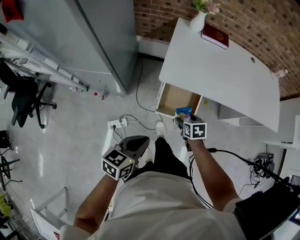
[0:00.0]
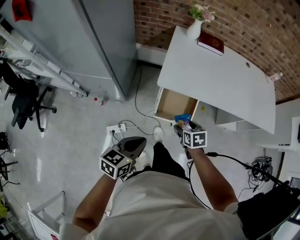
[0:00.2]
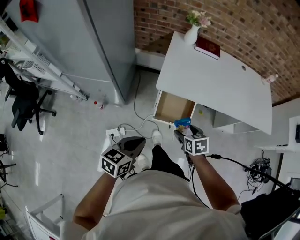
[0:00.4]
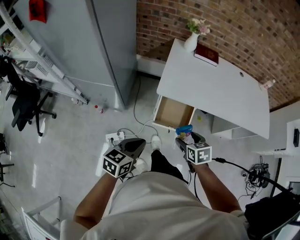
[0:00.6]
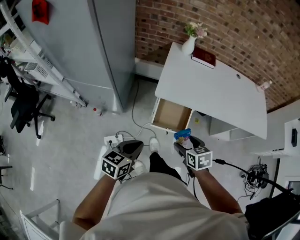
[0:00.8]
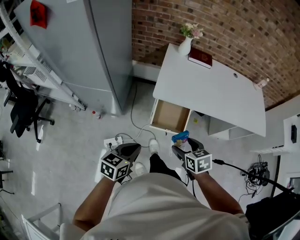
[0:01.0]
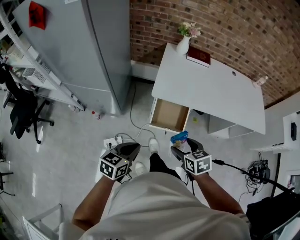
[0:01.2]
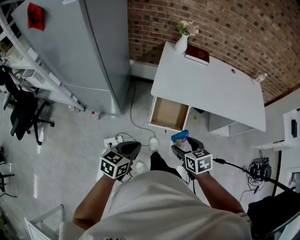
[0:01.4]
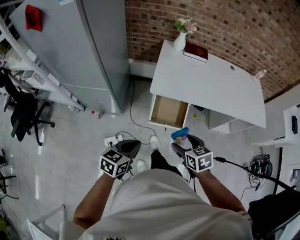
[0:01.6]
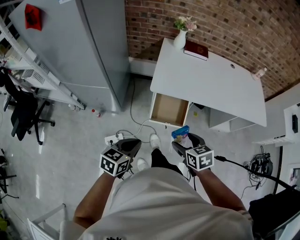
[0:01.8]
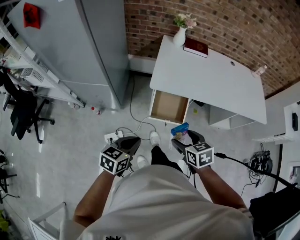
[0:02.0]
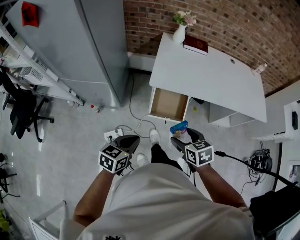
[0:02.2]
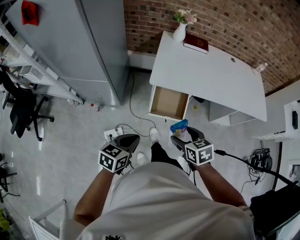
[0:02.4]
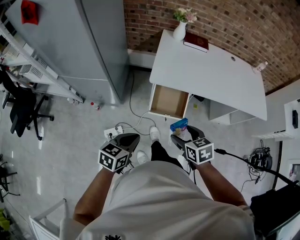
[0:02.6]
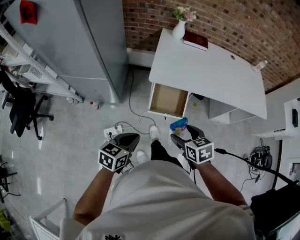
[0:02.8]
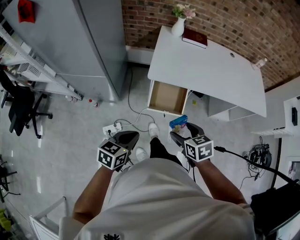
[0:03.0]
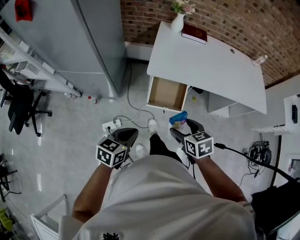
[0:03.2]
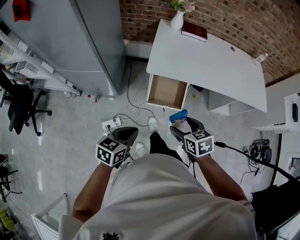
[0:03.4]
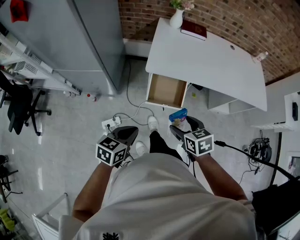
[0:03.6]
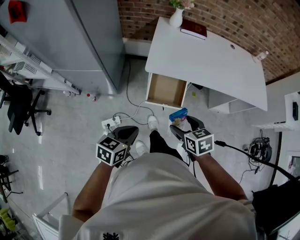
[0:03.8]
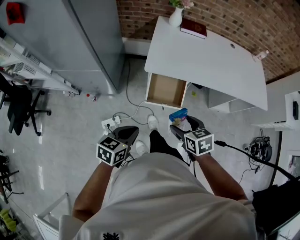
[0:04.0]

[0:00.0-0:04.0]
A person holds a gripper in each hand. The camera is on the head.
0:00.0 to 0:01.4: The right gripper heads upward and backward, covering roughly 25 cm. The left gripper moves backward, about 5 cm.
0:01.4 to 0:04.0: The grippers make only small movements.

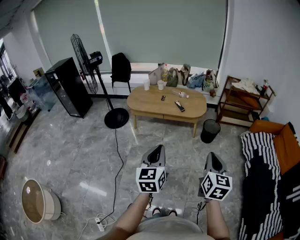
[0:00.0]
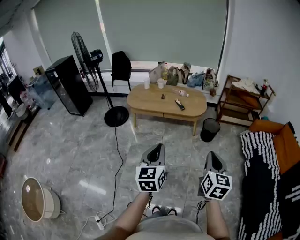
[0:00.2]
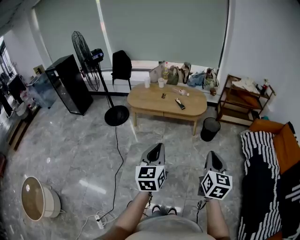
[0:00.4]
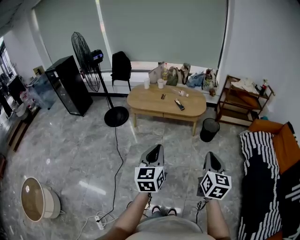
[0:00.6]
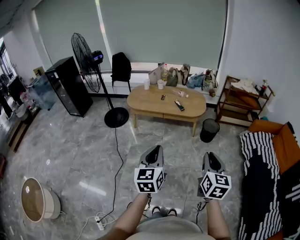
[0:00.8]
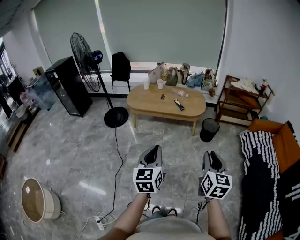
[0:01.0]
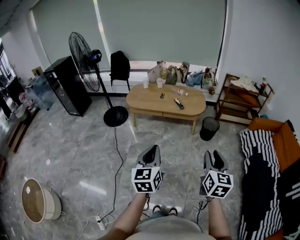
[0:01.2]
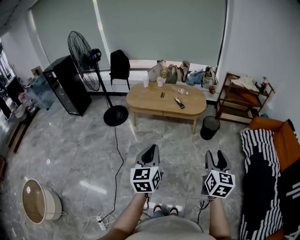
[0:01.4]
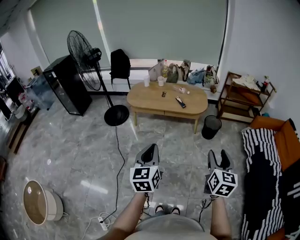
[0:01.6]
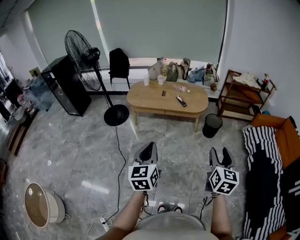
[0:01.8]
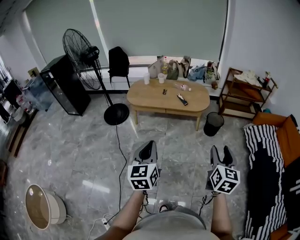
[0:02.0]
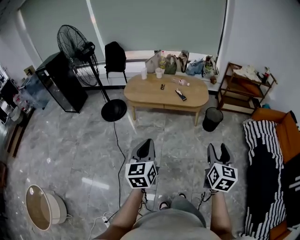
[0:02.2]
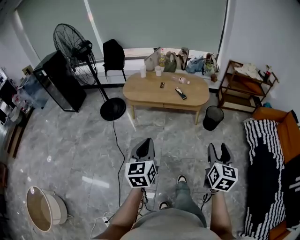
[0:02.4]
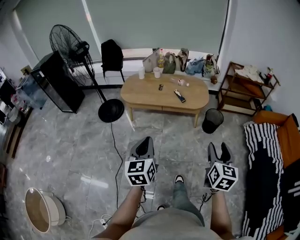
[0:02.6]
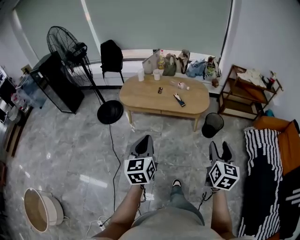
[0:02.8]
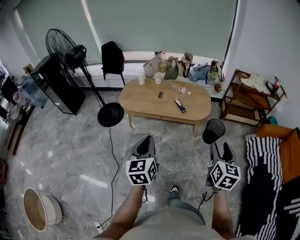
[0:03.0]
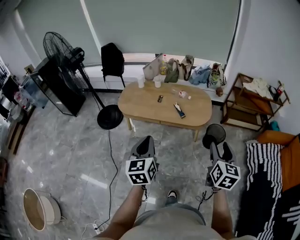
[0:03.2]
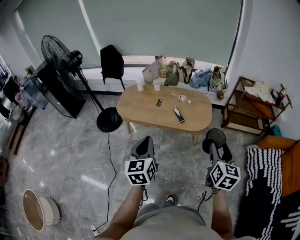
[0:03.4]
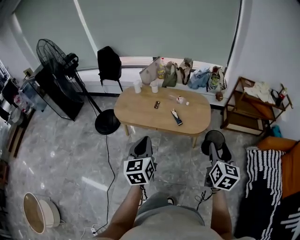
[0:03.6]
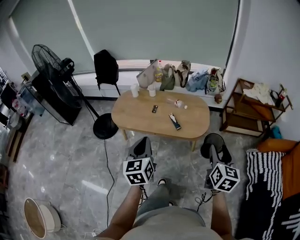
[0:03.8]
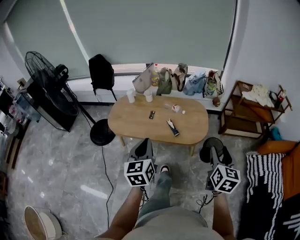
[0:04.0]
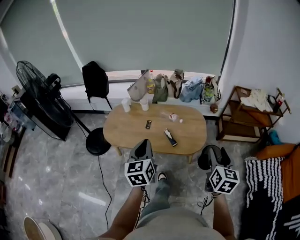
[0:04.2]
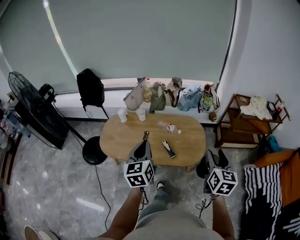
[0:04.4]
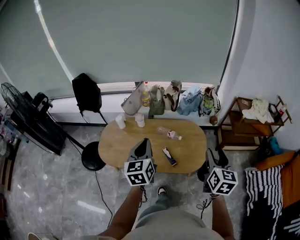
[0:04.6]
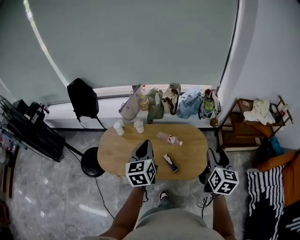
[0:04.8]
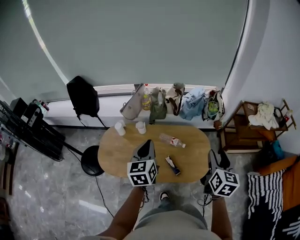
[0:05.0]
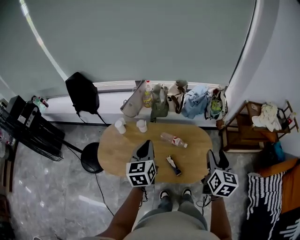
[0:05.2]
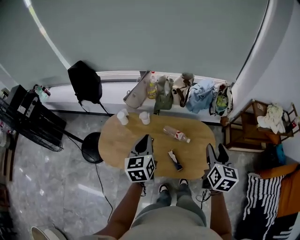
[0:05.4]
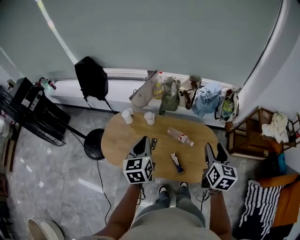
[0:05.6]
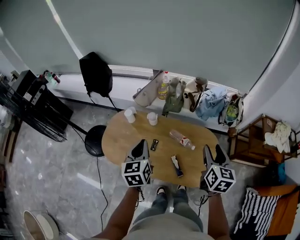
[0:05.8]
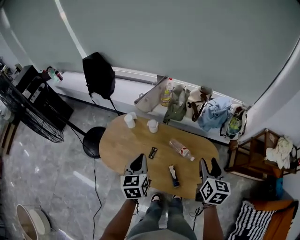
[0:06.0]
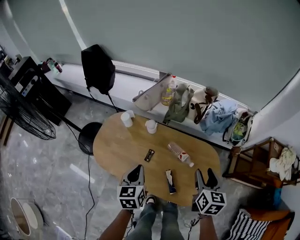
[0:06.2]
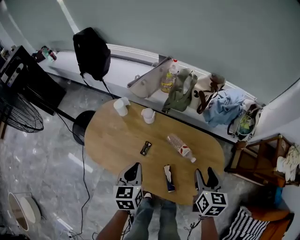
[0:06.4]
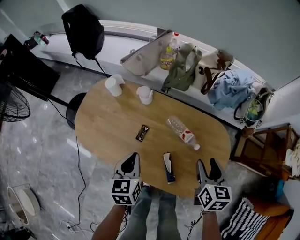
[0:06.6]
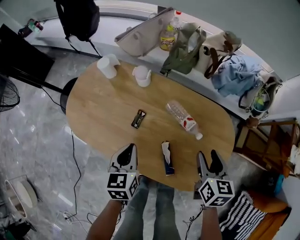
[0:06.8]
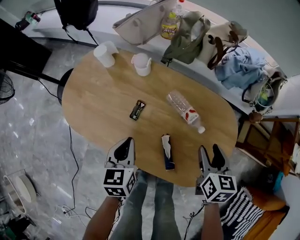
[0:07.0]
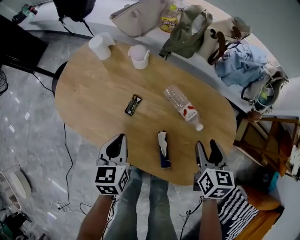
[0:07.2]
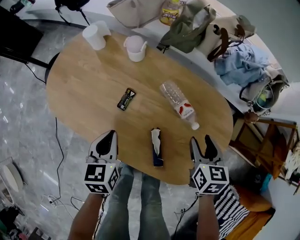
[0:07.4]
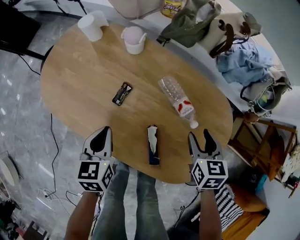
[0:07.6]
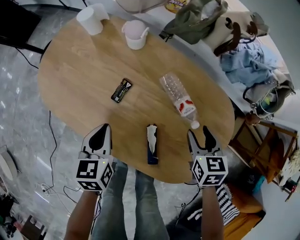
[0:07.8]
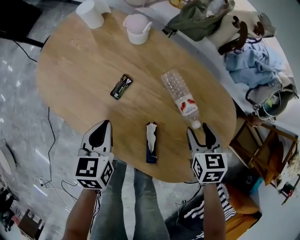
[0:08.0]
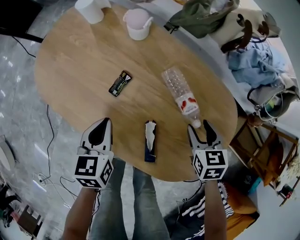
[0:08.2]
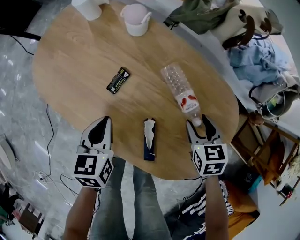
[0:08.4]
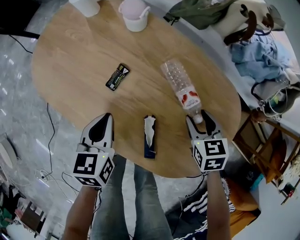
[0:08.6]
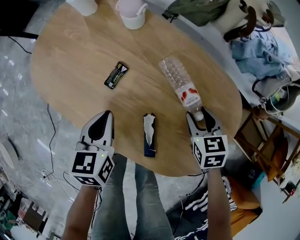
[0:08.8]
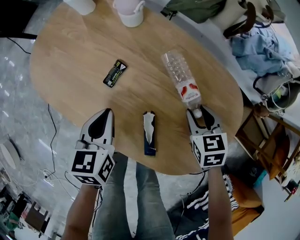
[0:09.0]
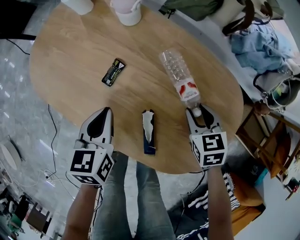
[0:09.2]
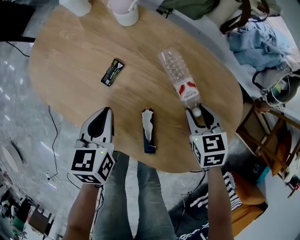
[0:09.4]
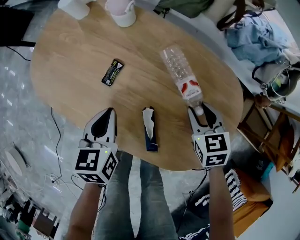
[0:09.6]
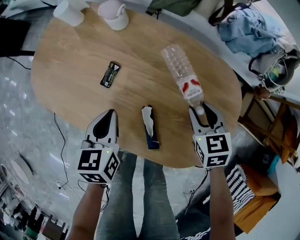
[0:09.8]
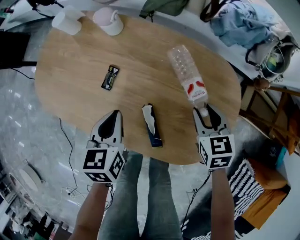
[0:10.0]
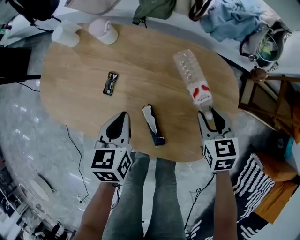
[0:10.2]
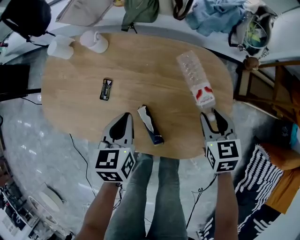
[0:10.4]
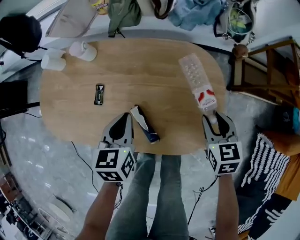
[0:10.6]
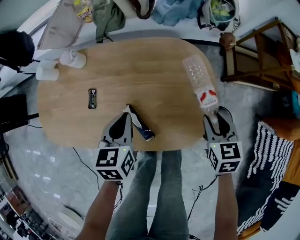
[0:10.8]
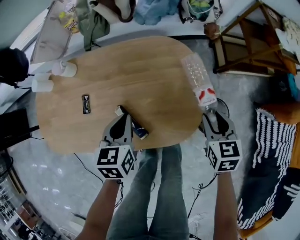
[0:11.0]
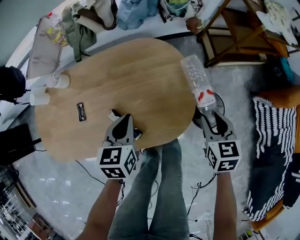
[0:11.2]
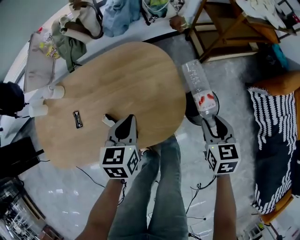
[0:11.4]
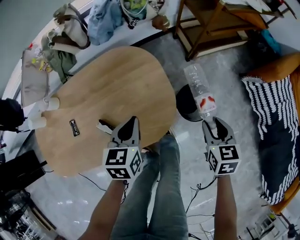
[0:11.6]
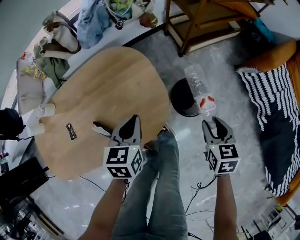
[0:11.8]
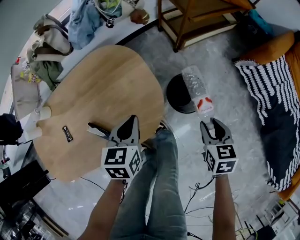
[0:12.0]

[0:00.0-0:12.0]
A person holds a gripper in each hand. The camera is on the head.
0:00.0 to 0:01.6: The left gripper goes roughly 5 cm to the left; the right gripper opens its fingers.
0:01.6 to 0:03.0: The two grippers go roughly 25 cm forward.
0:03.0 to 0:04.4: Both grippers move forward, about 40 cm.
0:04.4 to 0:06.0: The left gripper moves forward, downward and to the left, approximately 25 cm. The right gripper moves forward, approximately 30 cm.
0:06.0 to 0:07.6: Both grippers travel together downward, about 35 cm. The right gripper swivels approximately 30 degrees.
0:07.6 to 0:09.0: The right gripper travels downward by approximately 10 cm.
0:09.0 to 0:10.4: The right gripper is displaced backward, upward and to the right by some 15 cm, and swivels some 30 degrees. The left gripper is displaced to the right by roughly 10 cm, and rotates roughly 20 degrees.
0:10.4 to 0:12.0: The left gripper shifts by about 30 cm, and swivels roughly 40 degrees; the right gripper changes place by approximately 35 cm, and swivels about 50 degrees.

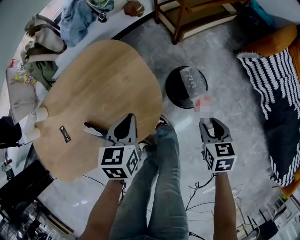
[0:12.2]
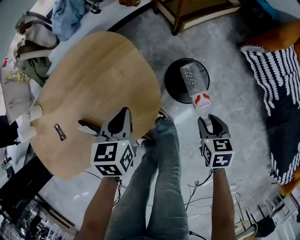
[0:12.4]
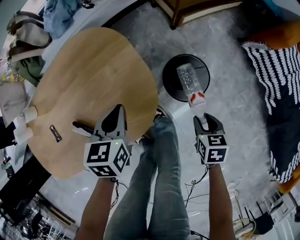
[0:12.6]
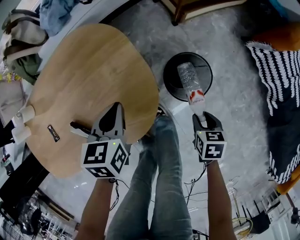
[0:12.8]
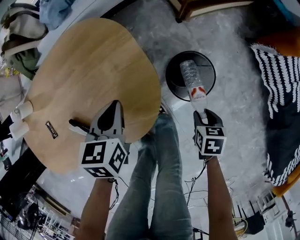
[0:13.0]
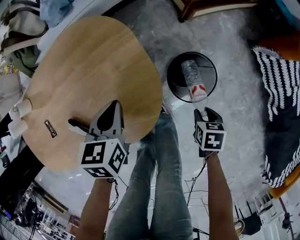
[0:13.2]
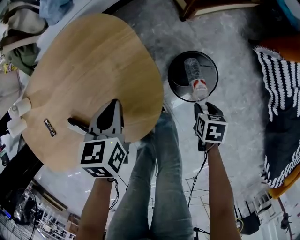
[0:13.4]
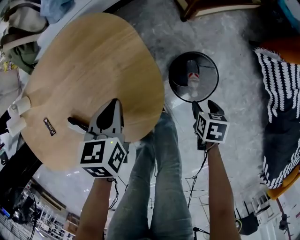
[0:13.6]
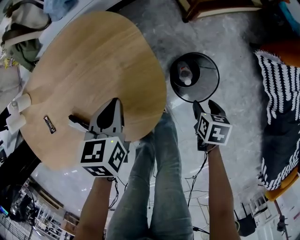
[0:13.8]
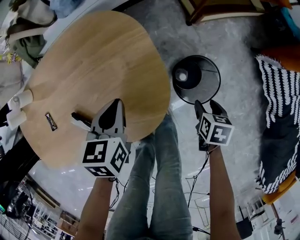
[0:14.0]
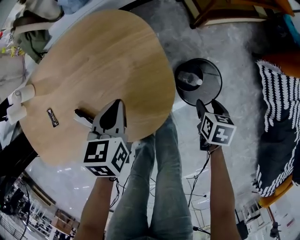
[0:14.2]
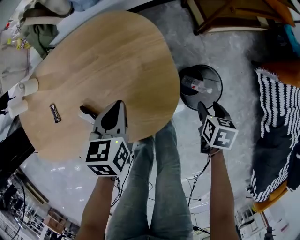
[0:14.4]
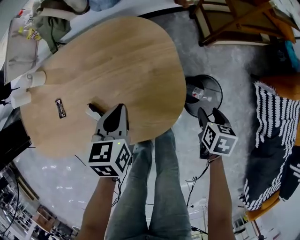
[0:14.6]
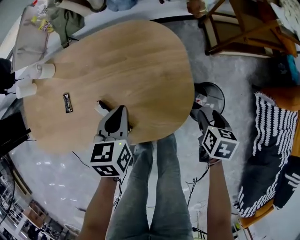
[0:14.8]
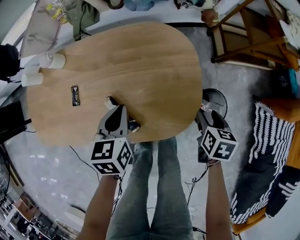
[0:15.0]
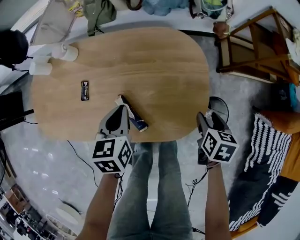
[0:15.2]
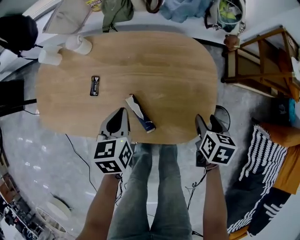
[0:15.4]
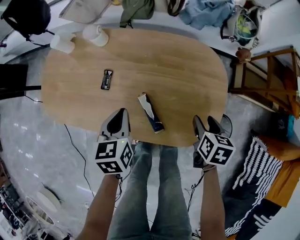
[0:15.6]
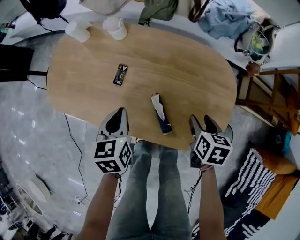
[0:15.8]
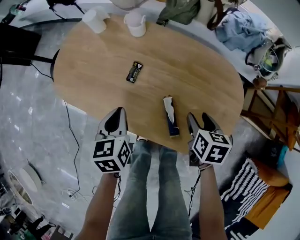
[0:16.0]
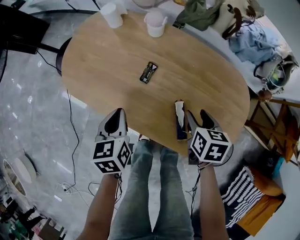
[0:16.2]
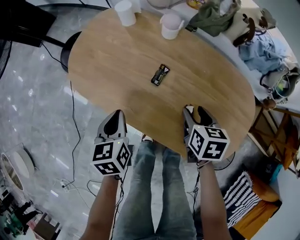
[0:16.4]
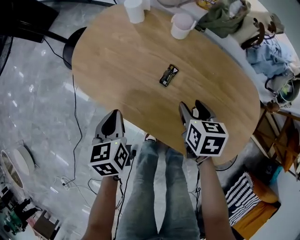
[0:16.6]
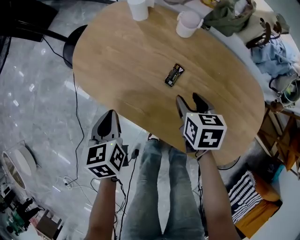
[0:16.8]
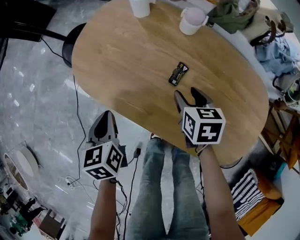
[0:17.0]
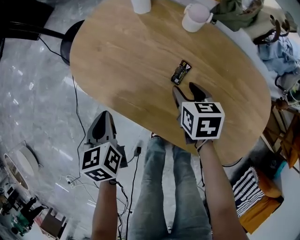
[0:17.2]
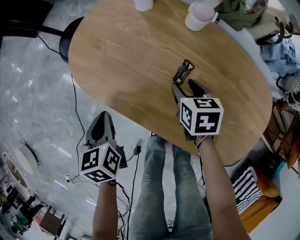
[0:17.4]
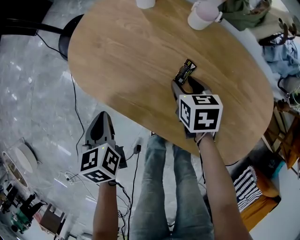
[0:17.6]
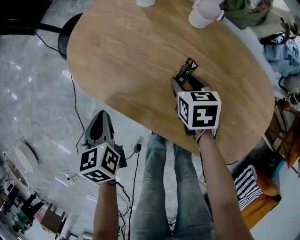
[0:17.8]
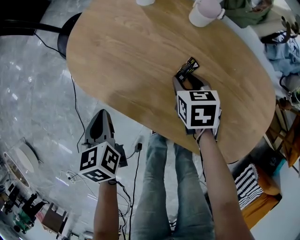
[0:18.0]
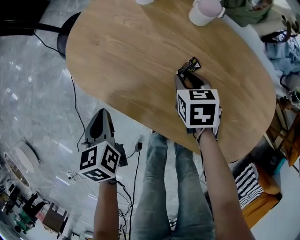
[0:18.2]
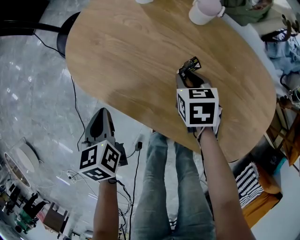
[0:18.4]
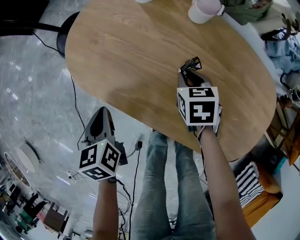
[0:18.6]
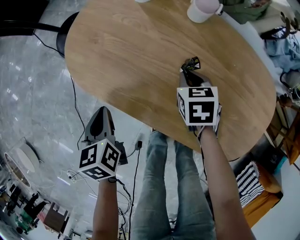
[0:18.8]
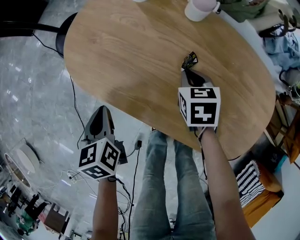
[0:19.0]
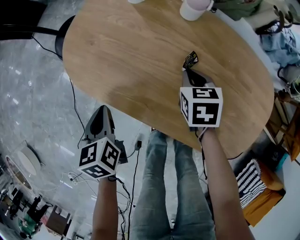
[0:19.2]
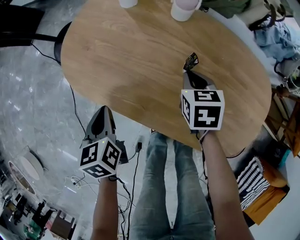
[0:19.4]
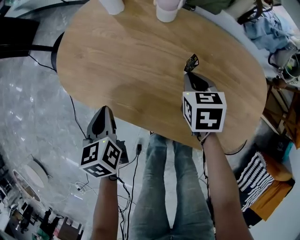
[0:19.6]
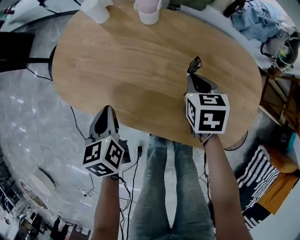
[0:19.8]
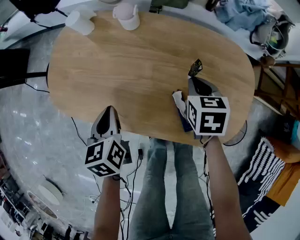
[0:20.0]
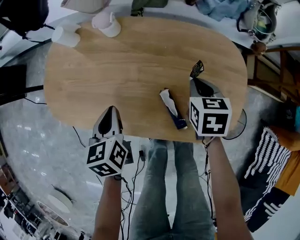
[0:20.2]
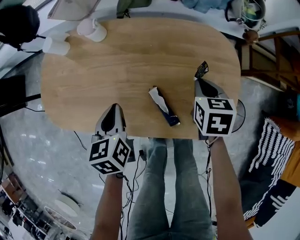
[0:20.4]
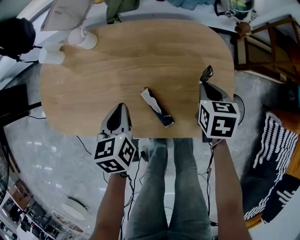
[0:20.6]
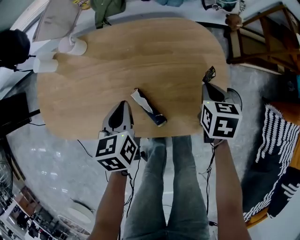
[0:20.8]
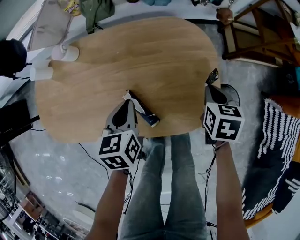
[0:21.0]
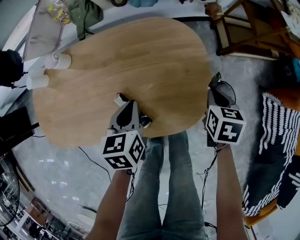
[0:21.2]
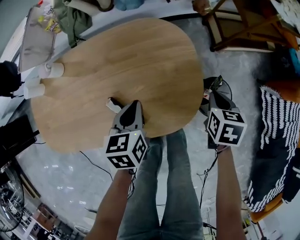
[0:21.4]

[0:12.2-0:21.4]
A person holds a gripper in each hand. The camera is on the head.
0:12.2 to 0:13.8: The right gripper moves downward, about 15 cm, and opens its fingers. Meanwhile the left gripper moves downward, approximately 5 cm.
0:13.8 to 0:15.2: The right gripper goes about 25 cm upward, to the left and forward, and changes its angle by some 20 degrees. The left gripper travels to the left and upward by roughly 20 cm, and rotates roughly 30 degrees.
0:15.2 to 0:16.8: The left gripper shifts by approximately 35 cm, and turns by some 40 degrees. Meanwhile the right gripper ends up roughly 40 cm from where it was, and swivels about 40 degrees.
0:16.8 to 0:18.4: The right gripper travels forward and downward by about 10 cm, and closes up; the left gripper goes about 5 cm to the left.
0:18.4 to 0:19.8: The left gripper moves to the right, approximately 10 cm; the right gripper is displaced to the right, upward and backward by about 15 cm, and closes its fingers.
0:19.8 to 0:21.4: The left gripper ends up some 40 cm from where it was, and swivels some 40 degrees. The right gripper shifts by some 40 cm, and changes its angle by about 40 degrees.
